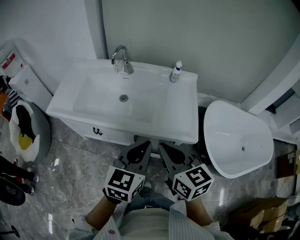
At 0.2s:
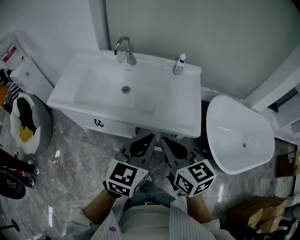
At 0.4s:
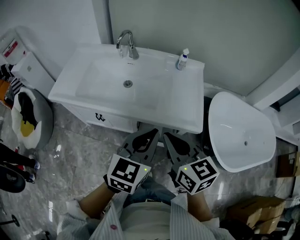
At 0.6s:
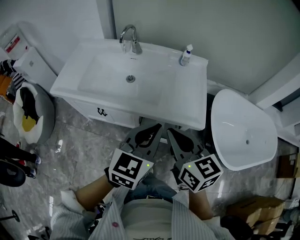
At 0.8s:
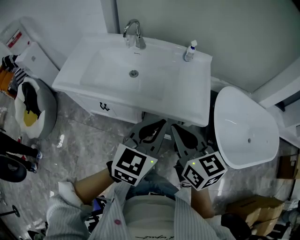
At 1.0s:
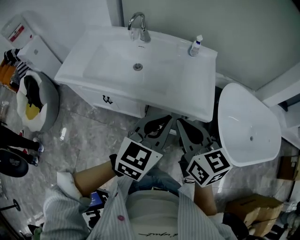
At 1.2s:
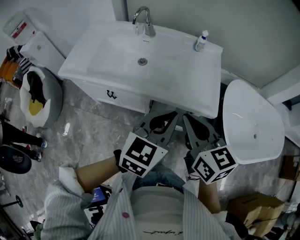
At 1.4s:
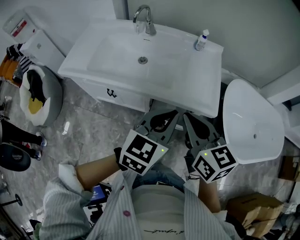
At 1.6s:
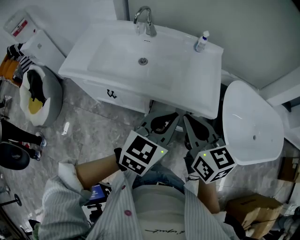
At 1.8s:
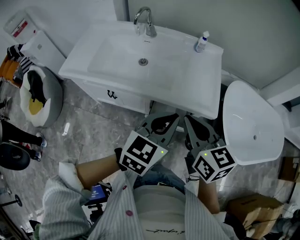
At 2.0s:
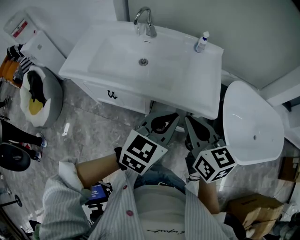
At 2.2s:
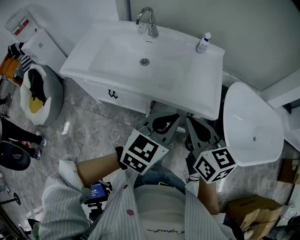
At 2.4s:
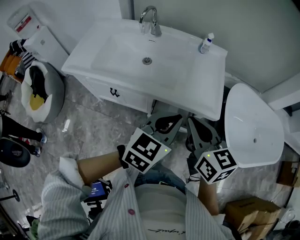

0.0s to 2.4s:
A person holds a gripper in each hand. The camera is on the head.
0.0s to 2.4s: The grippers move only a little.

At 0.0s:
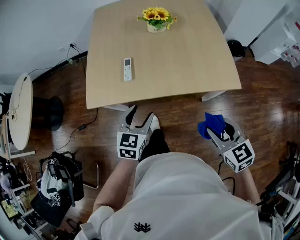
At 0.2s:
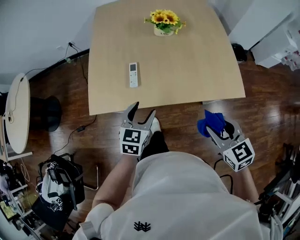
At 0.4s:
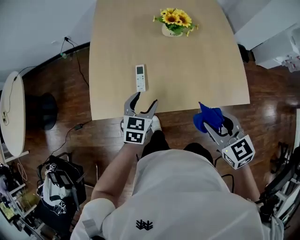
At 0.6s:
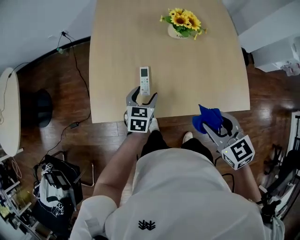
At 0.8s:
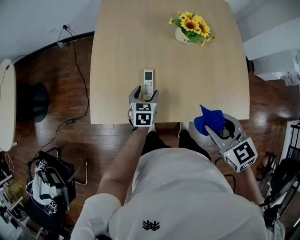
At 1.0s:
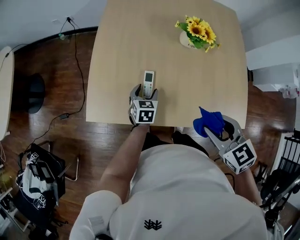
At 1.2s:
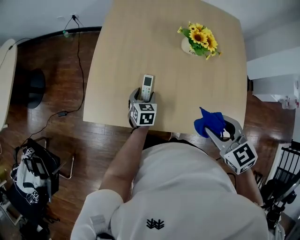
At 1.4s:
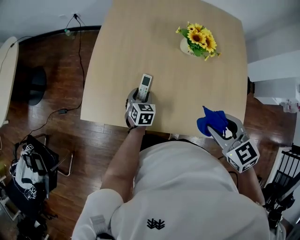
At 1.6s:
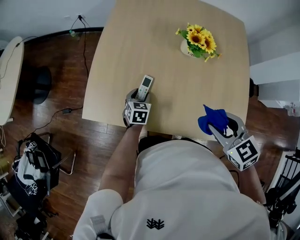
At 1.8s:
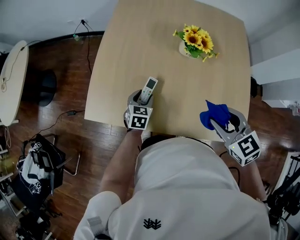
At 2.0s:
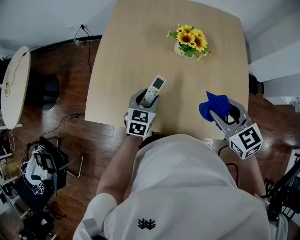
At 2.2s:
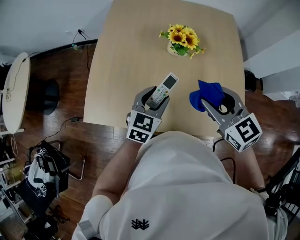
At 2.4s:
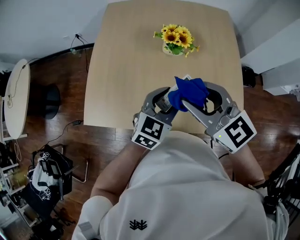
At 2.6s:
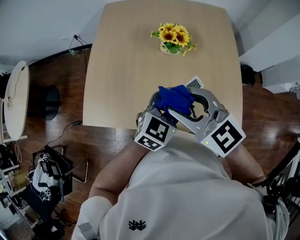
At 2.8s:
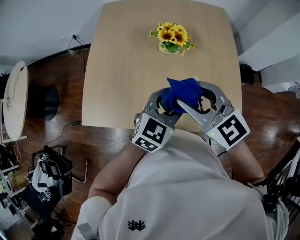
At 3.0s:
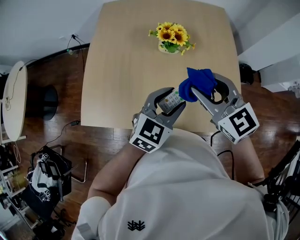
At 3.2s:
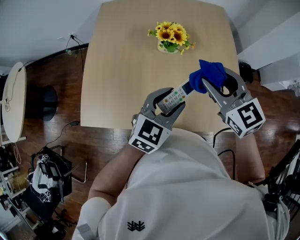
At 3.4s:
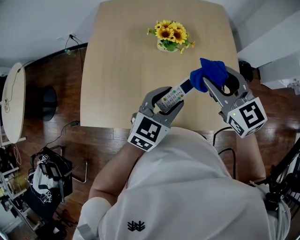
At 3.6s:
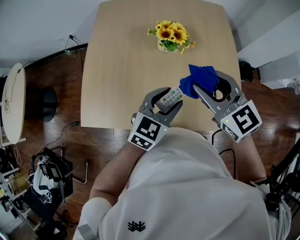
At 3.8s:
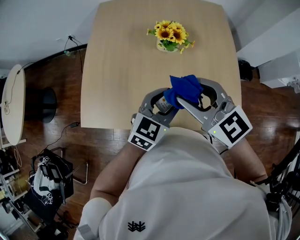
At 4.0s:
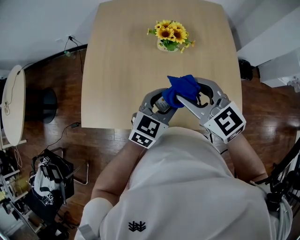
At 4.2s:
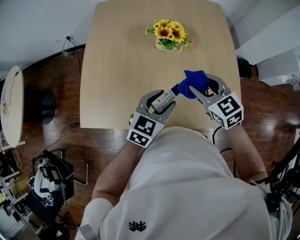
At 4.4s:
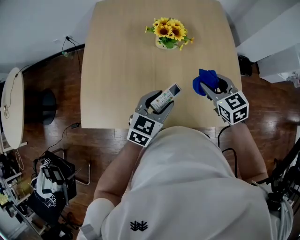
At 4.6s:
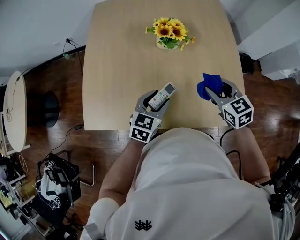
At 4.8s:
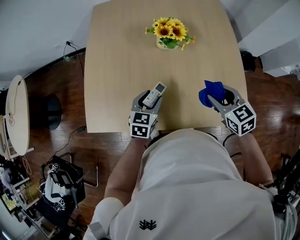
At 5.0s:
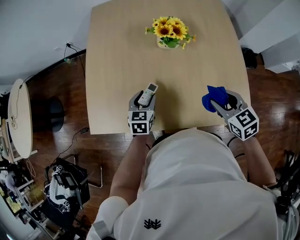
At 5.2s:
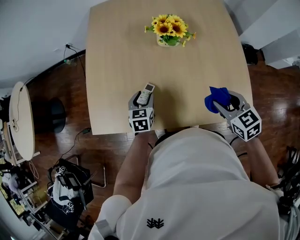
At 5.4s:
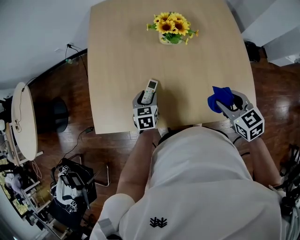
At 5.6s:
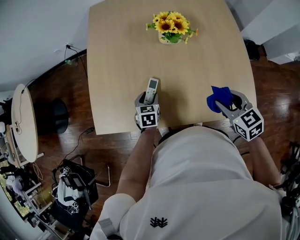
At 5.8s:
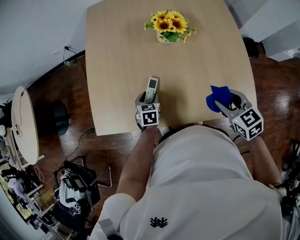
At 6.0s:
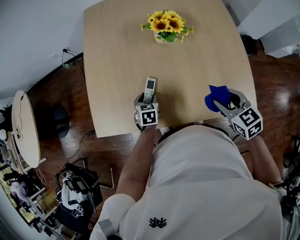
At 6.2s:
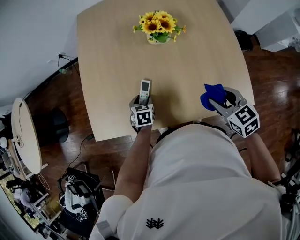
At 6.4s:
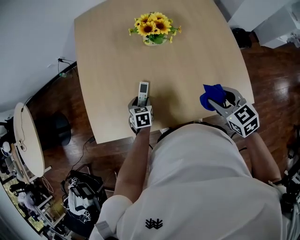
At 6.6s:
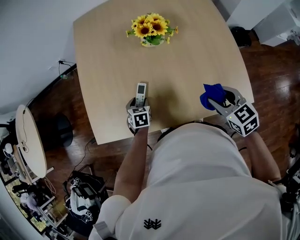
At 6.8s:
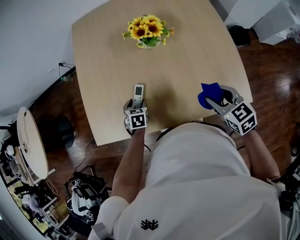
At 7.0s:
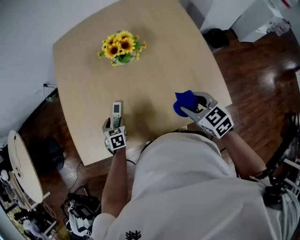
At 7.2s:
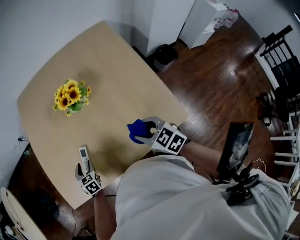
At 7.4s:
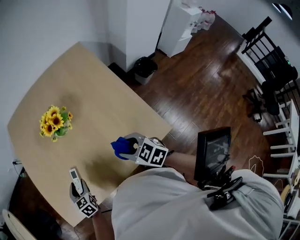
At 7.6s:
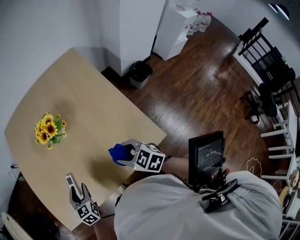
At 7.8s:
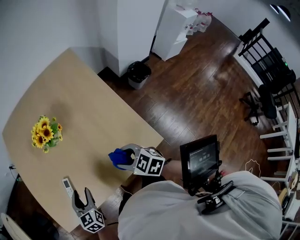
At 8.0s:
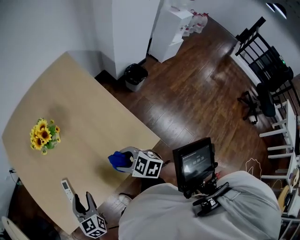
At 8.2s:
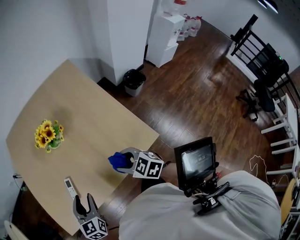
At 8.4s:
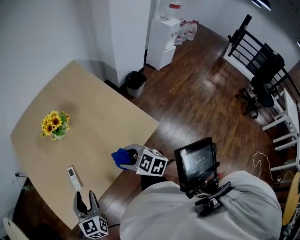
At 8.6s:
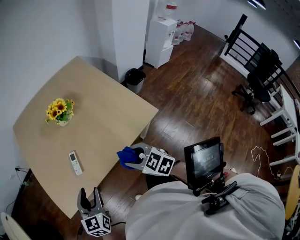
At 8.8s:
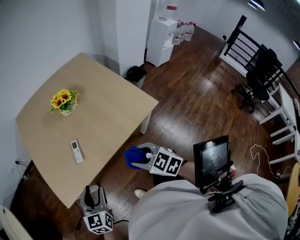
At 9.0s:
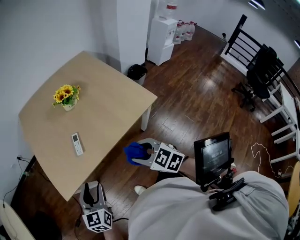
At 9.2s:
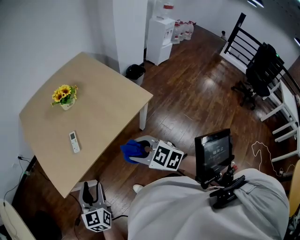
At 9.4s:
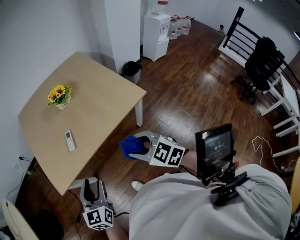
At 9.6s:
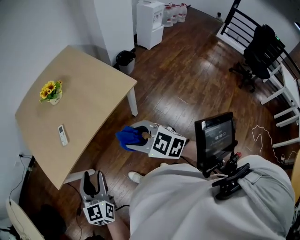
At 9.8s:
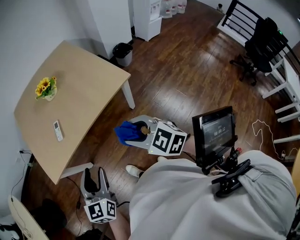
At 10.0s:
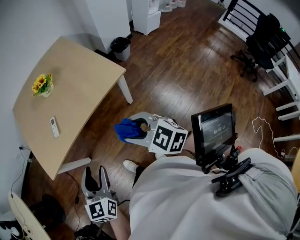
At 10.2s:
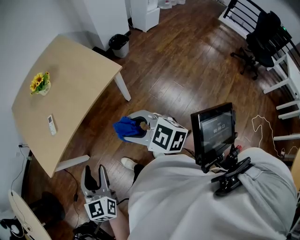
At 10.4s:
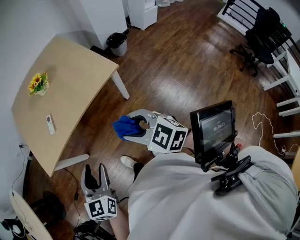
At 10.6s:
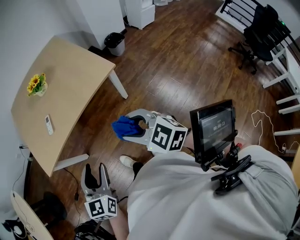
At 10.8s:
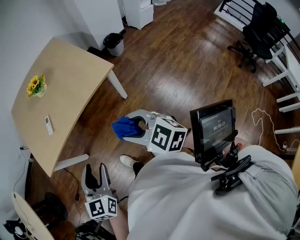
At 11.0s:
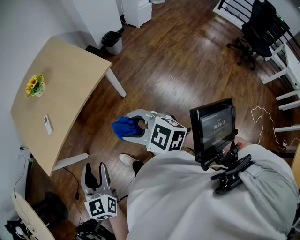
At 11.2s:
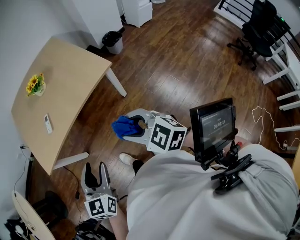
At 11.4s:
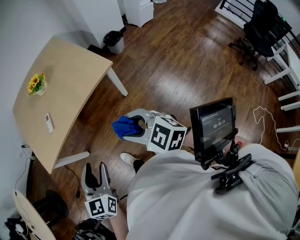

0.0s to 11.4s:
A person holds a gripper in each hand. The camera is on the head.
0.0s to 1.4s: The right gripper travels forward by some 30 cm, and swivels approximately 20 degrees, while the left gripper travels forward and downward by some 35 cm, and turns by about 30 degrees.
1.4s to 2.8s: The right gripper heads upward, covering about 10 cm, and rotates approximately 30 degrees; the left gripper heads upward and to the right, covering about 35 cm, and swivels approximately 50 degrees.
2.8s to 4.2s: The left gripper moves downward, some 5 cm. Meanwhile the right gripper shifts some 15 cm downward, to the right and forward.
4.2s to 5.6s: The right gripper shifts roughly 10 cm backward, downward and to the right. Meanwhile the left gripper moves downward and to the left, some 20 cm, and changes its angle by approximately 40 degrees.
5.6s to 7.2s: The left gripper shifts by about 5 cm.
7.2s to 8.6s: The left gripper goes some 30 cm upward and backward, and rotates some 40 degrees. The right gripper moves backward and to the left, approximately 20 cm.
8.6s to 10.0s: The grippers both shift backward and to the right by roughly 25 cm.
10.0s to 11.4s: Both grippers travel together backward, approximately 5 cm.

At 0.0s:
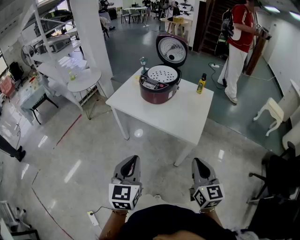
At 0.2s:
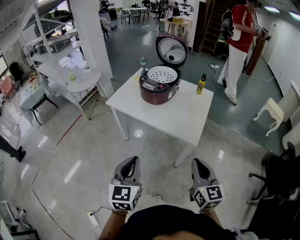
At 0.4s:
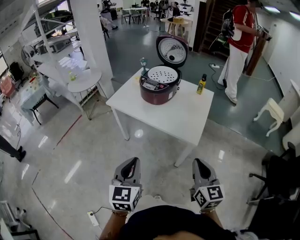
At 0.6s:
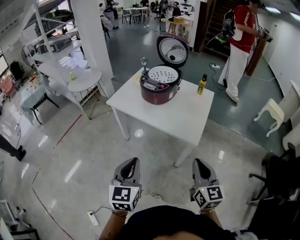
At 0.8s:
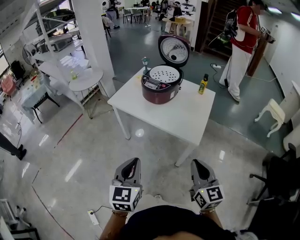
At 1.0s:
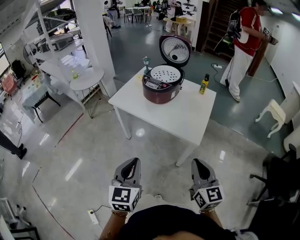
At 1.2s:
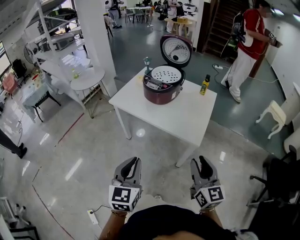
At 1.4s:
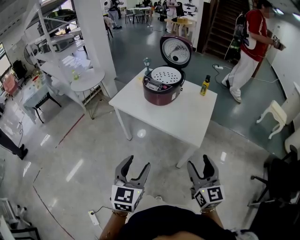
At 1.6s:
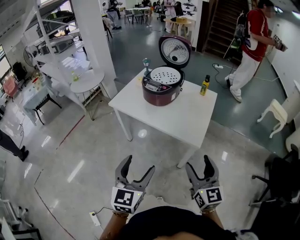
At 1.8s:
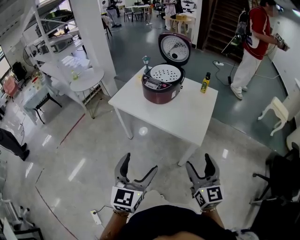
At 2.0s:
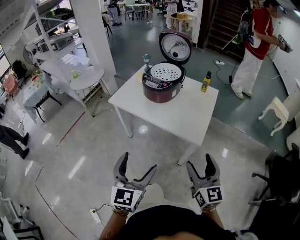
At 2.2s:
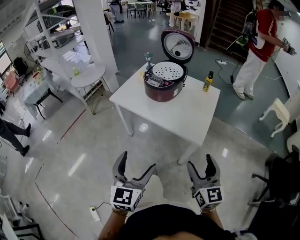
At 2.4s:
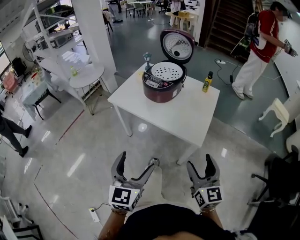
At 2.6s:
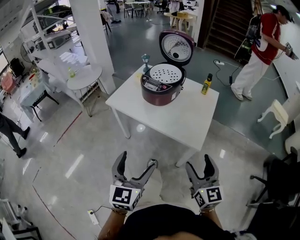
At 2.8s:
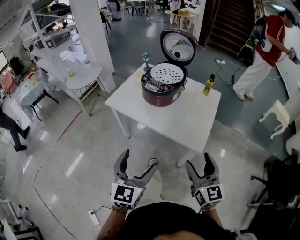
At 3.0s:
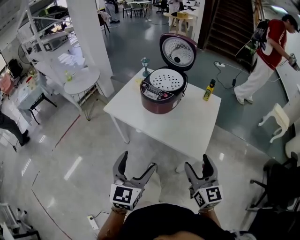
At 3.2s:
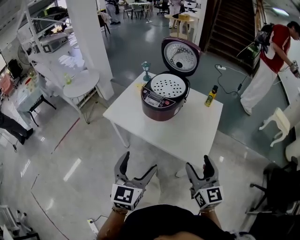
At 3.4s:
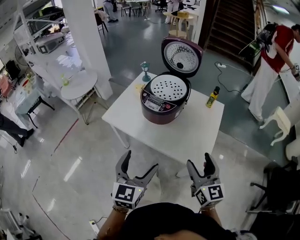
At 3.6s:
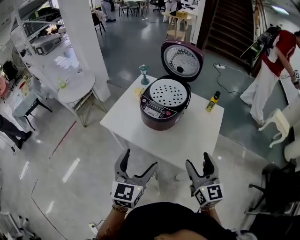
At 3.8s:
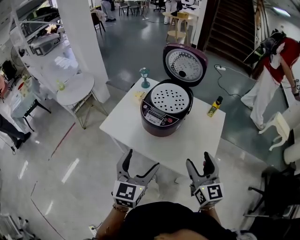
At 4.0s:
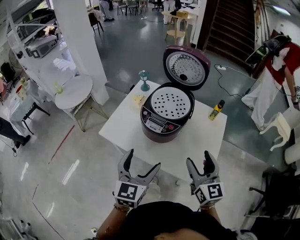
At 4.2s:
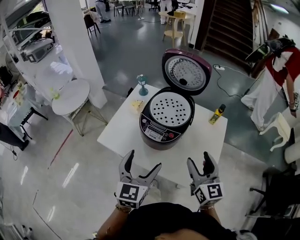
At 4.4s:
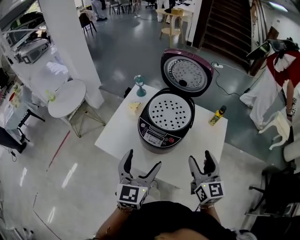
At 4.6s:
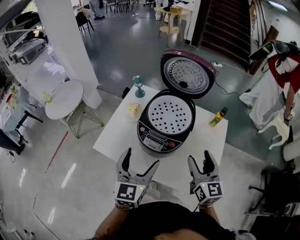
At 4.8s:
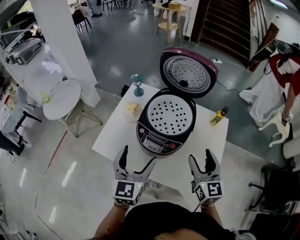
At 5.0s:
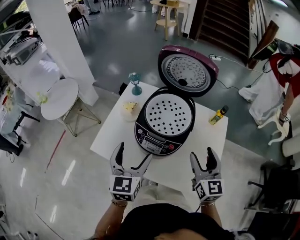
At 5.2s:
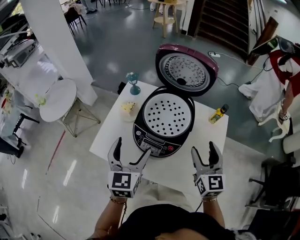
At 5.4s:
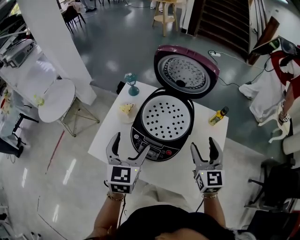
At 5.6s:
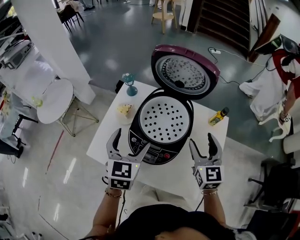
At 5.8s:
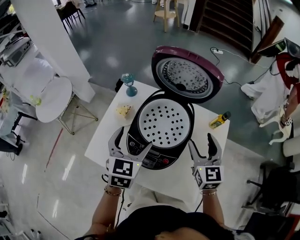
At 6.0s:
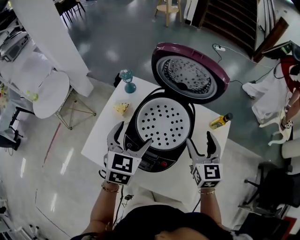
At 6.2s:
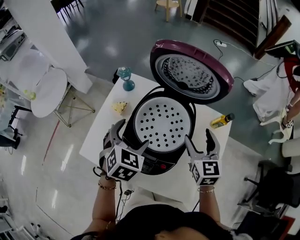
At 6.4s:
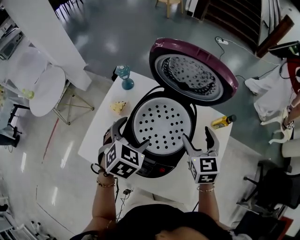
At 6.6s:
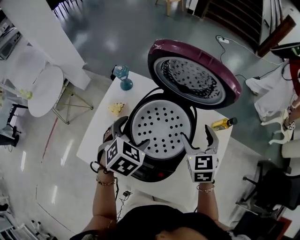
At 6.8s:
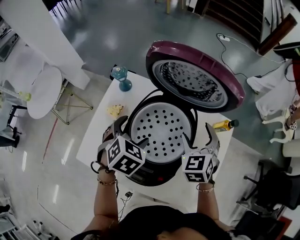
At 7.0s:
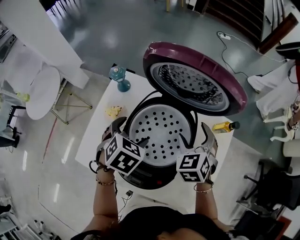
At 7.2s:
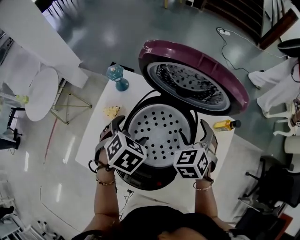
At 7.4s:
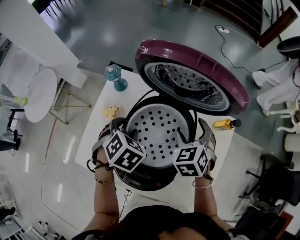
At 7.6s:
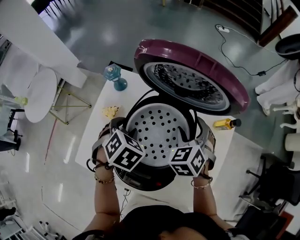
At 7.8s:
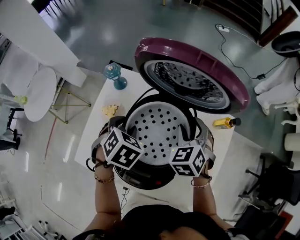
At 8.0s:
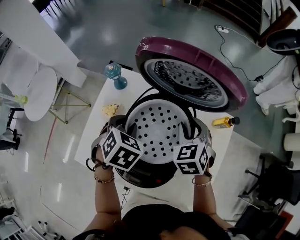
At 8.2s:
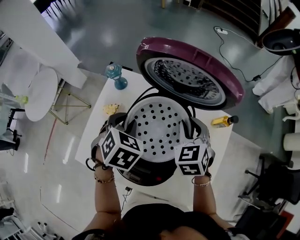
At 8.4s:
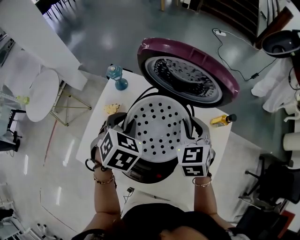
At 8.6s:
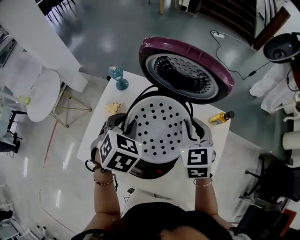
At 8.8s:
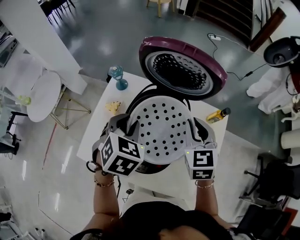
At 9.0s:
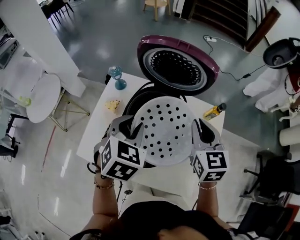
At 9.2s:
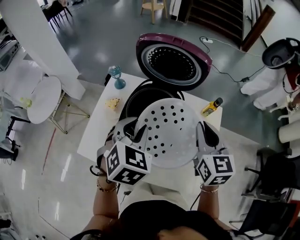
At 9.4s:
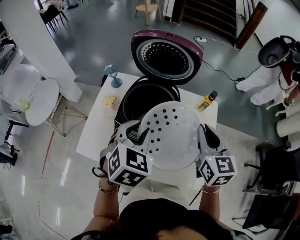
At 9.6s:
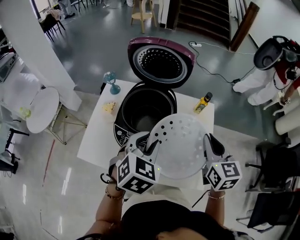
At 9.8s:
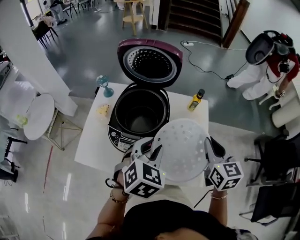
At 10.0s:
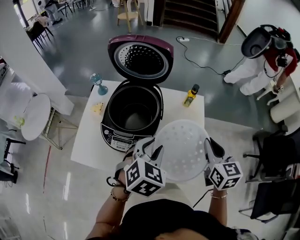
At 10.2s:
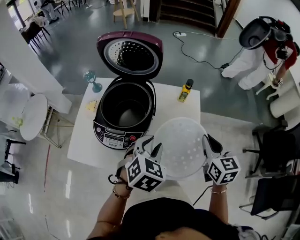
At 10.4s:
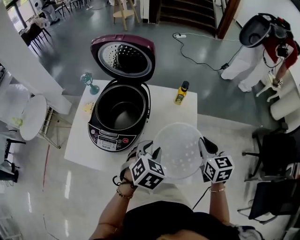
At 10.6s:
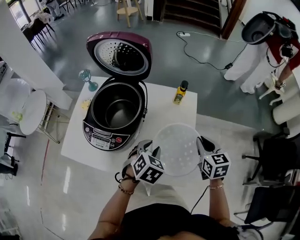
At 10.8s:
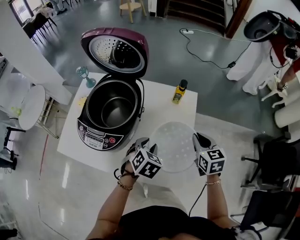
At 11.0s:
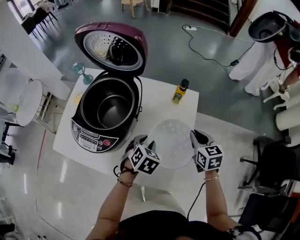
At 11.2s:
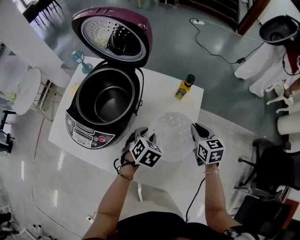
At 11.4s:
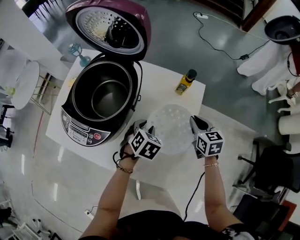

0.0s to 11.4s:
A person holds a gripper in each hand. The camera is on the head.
0.0s to 1.4s: The right gripper opens its fingers, while the left gripper opens up.
1.4s to 2.8s: The two grippers go about 10 cm forward. The left gripper opens.
2.8s to 4.2s: The two grippers go roughly 30 cm forward.
4.2s to 5.6s: The grippers both shift forward by approximately 20 cm.
5.6s to 7.2s: The two grippers go roughly 15 cm forward and downward. The right gripper points its fingers roughly 30 degrees further downward. The left gripper angles its fingers downward, by some 40 degrees.
7.2s to 8.6s: Both grippers travel together upward, some 5 cm. The right gripper turns by roughly 20 degrees, and closes its fingers, while the left gripper closes.
8.6s to 10.0s: The left gripper is displaced to the right and backward by roughly 30 cm, and rotates approximately 20 degrees. The right gripper is displaced backward and to the right by about 30 cm, and swivels some 30 degrees.
10.0s to 11.4s: The grippers both shift downward, forward and to the right by approximately 30 cm. The right gripper turns by some 20 degrees. The left gripper turns by about 30 degrees.
